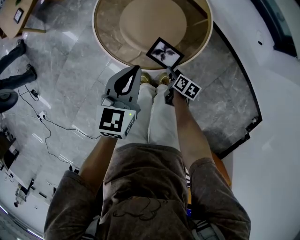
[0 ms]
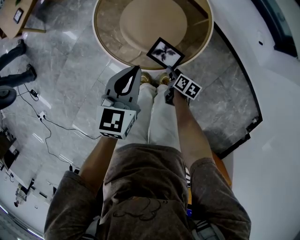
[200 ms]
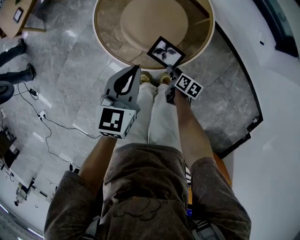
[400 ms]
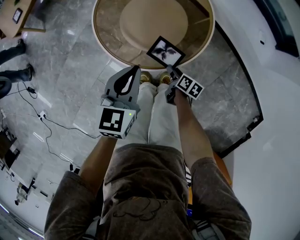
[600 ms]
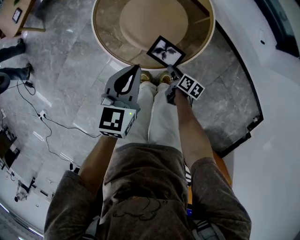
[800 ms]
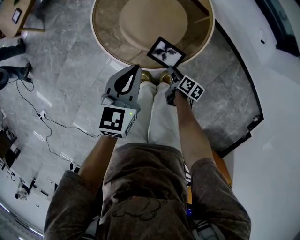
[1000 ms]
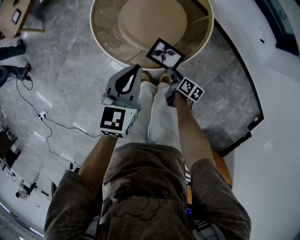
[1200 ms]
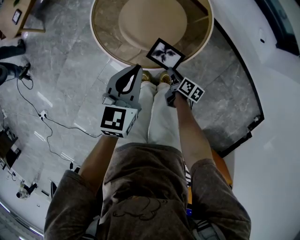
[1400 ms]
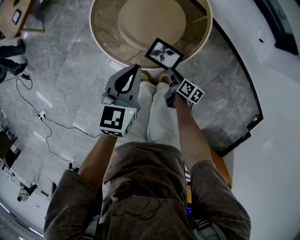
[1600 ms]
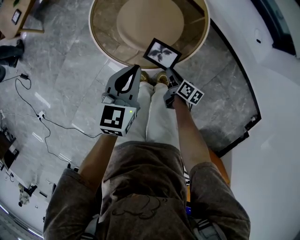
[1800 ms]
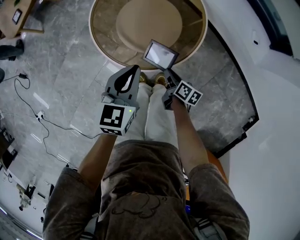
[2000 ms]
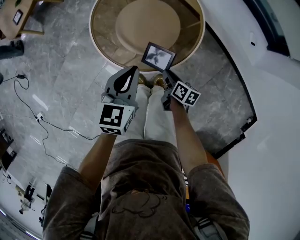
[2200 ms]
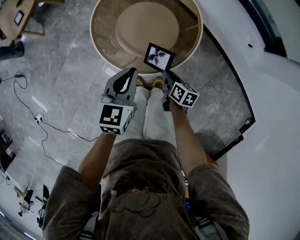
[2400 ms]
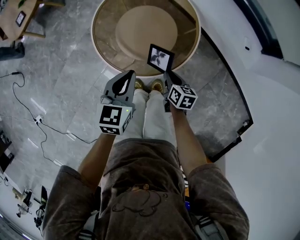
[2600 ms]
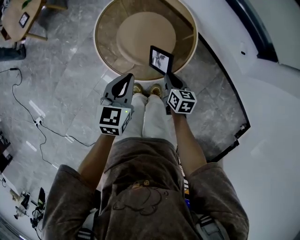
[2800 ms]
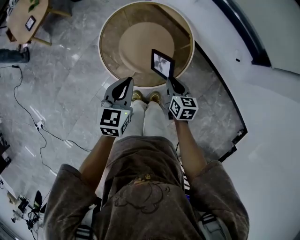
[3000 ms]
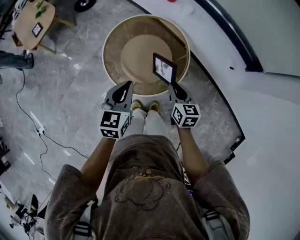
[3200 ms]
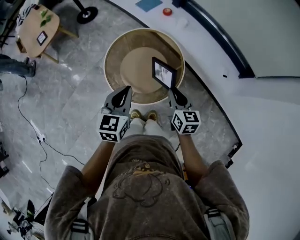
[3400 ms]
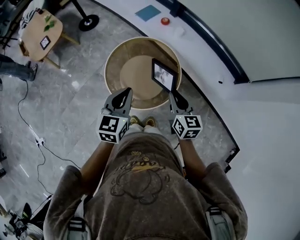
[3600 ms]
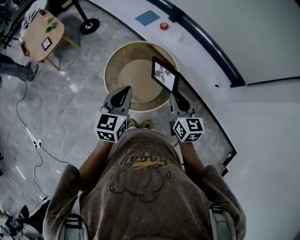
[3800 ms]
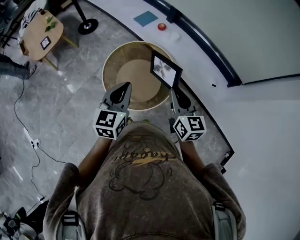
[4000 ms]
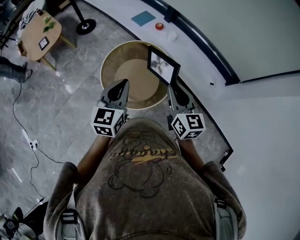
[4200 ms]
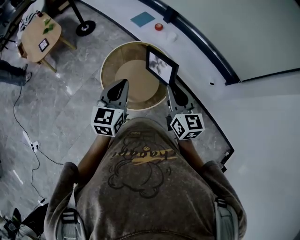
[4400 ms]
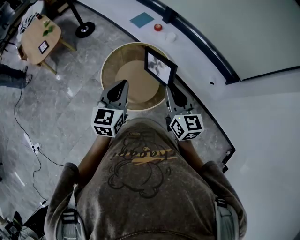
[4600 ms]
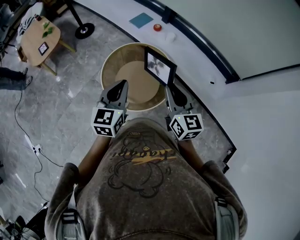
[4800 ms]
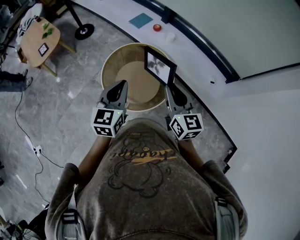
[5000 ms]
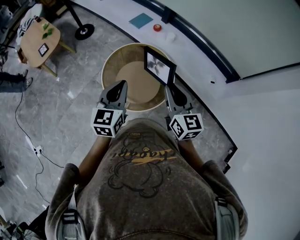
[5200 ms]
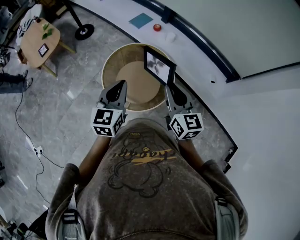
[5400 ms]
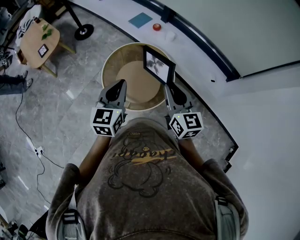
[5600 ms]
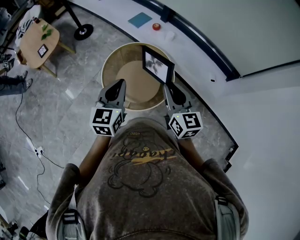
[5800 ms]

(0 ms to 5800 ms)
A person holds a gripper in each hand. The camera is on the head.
0 ms - 1400 ms: The right gripper closes up.
1400 ms - 2800 ms: The right gripper moves upward, about 15 cm, and swivels some 40 degrees.
2800 ms - 4400 ms: The left gripper is displaced upward by some 25 cm. Meanwhile the right gripper heads upward, covering about 40 cm, and tips its fingers upward by roughly 30 degrees.
4400 ms - 5800 ms: The grippers make only small movements.

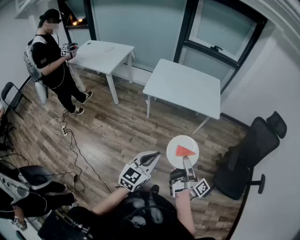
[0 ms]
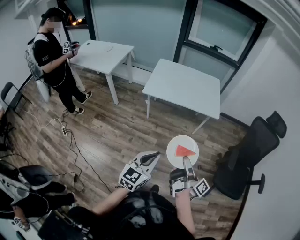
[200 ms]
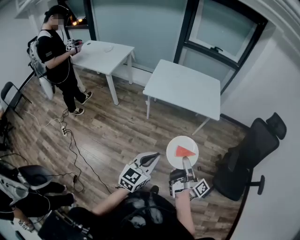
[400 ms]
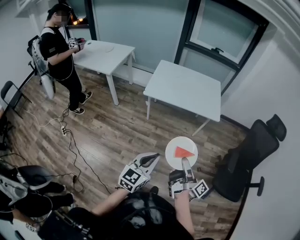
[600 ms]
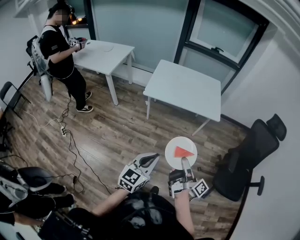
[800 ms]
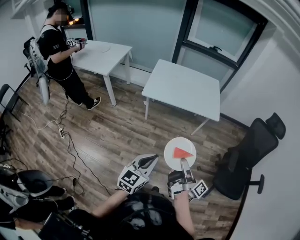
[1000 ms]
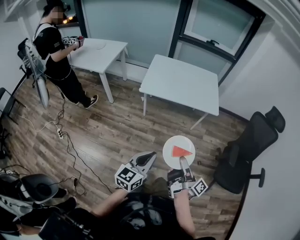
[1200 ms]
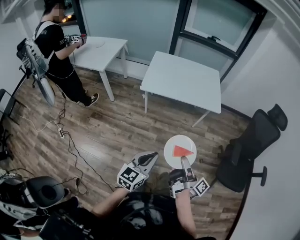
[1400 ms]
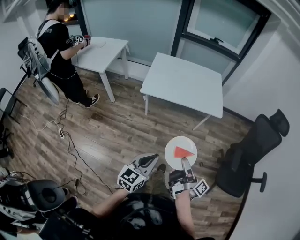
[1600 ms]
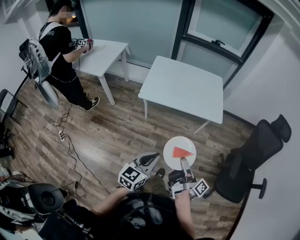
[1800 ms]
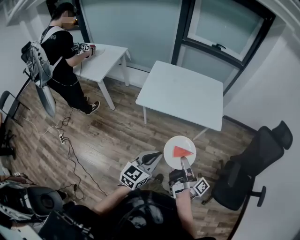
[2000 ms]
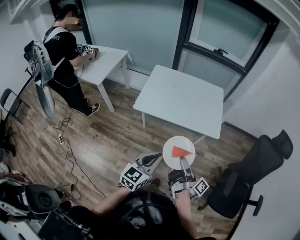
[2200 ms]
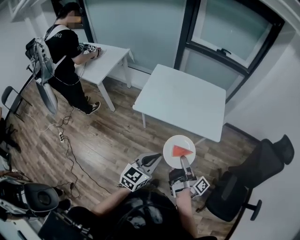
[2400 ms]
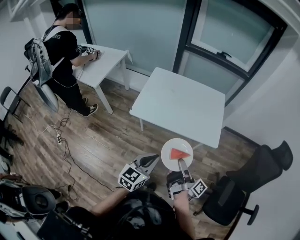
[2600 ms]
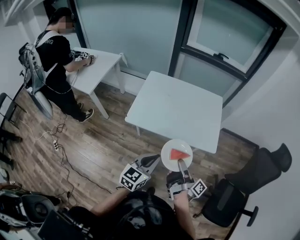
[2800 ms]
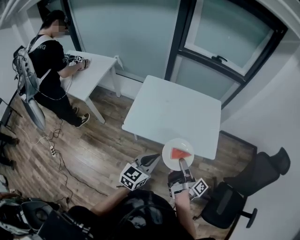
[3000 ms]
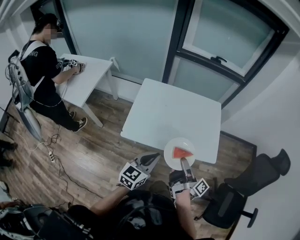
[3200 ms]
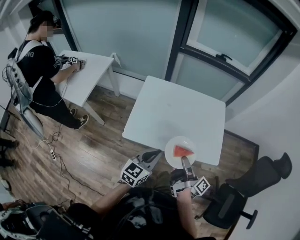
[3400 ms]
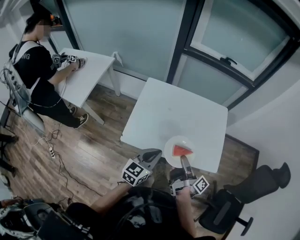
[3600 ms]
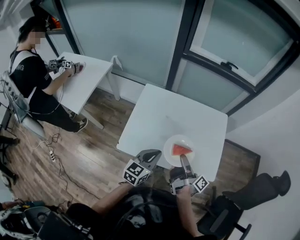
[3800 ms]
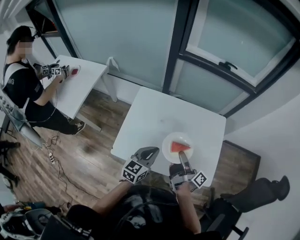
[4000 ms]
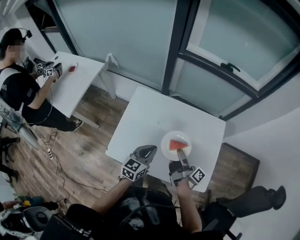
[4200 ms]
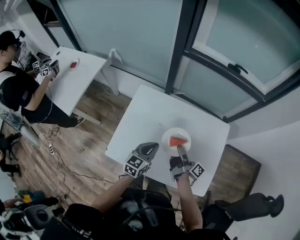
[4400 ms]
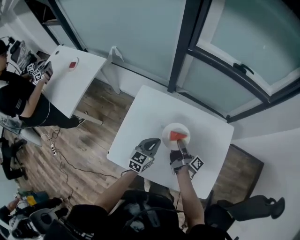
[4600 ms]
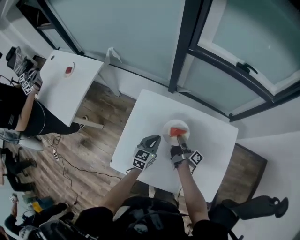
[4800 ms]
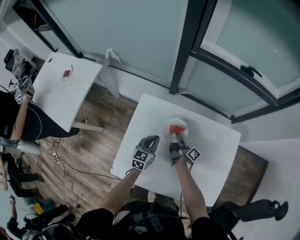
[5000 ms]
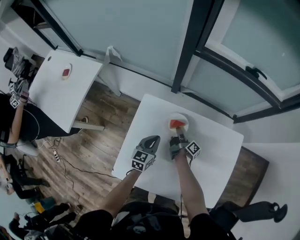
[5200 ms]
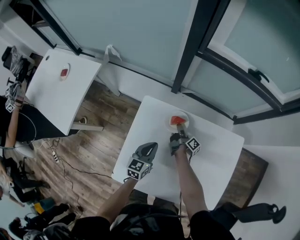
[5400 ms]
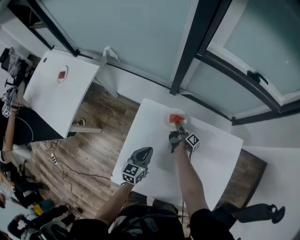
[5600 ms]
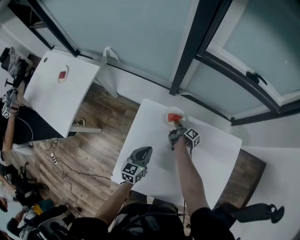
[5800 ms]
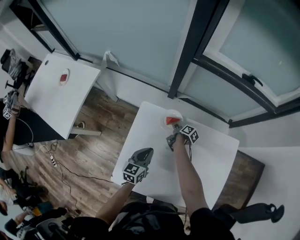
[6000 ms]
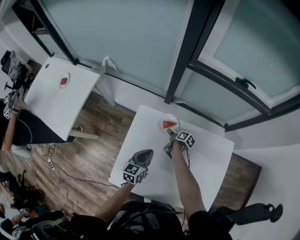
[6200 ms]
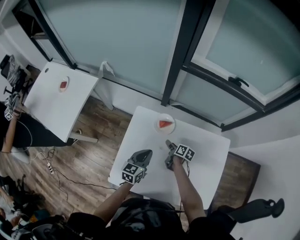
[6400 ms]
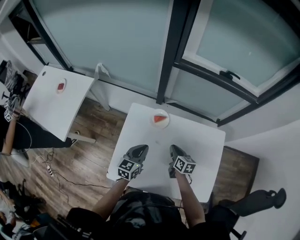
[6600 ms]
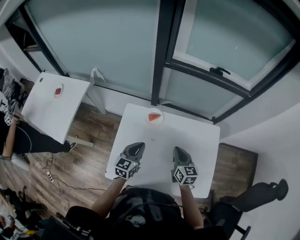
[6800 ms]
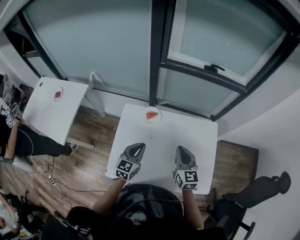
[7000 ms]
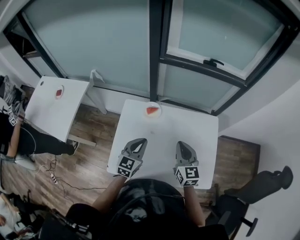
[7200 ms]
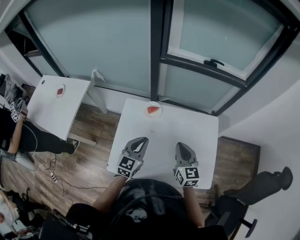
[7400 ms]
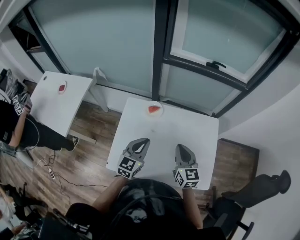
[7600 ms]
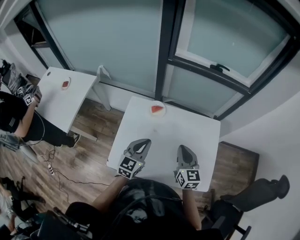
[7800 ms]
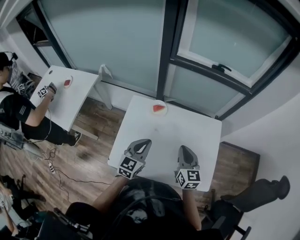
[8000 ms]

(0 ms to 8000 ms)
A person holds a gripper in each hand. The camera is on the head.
0 ms - 1600 ms: The left gripper shifts by about 10 cm.
1600 ms - 3200 ms: The left gripper moves approximately 40 cm.
3200 ms - 4800 ms: The left gripper shifts by roughly 50 cm.
4800 ms - 6400 ms: The left gripper shifts by roughly 5 cm.
6400 ms - 8000 ms: The left gripper heads upward, covering roughly 10 cm, and rotates roughly 20 degrees.

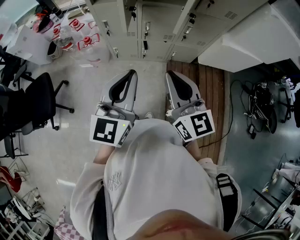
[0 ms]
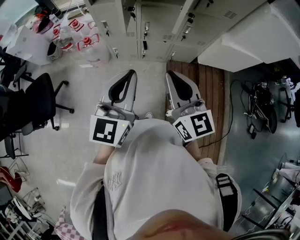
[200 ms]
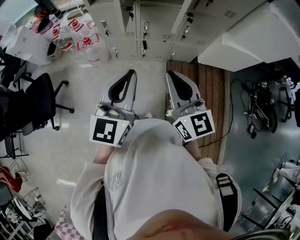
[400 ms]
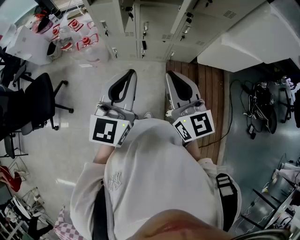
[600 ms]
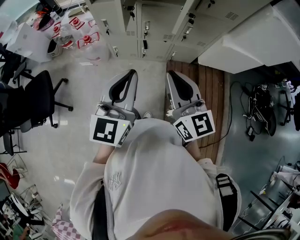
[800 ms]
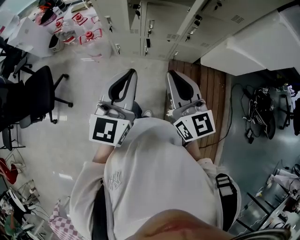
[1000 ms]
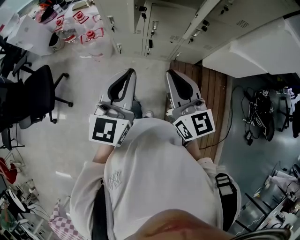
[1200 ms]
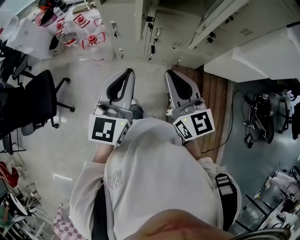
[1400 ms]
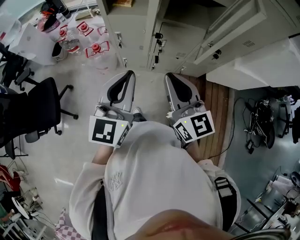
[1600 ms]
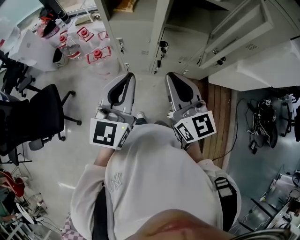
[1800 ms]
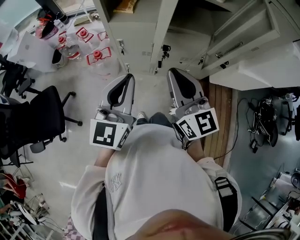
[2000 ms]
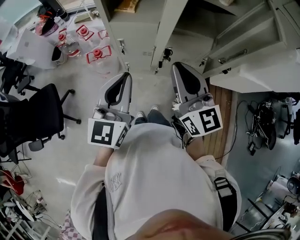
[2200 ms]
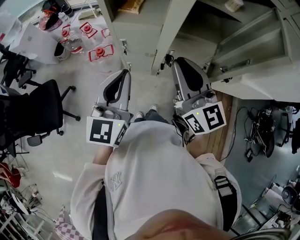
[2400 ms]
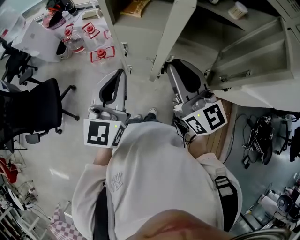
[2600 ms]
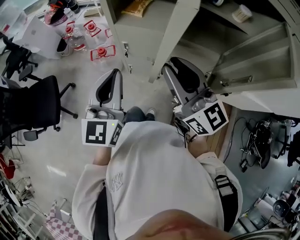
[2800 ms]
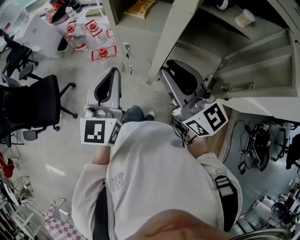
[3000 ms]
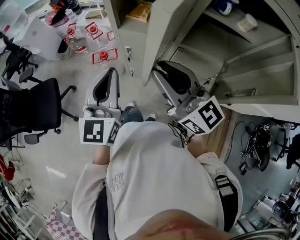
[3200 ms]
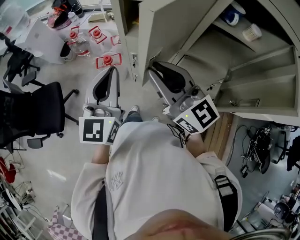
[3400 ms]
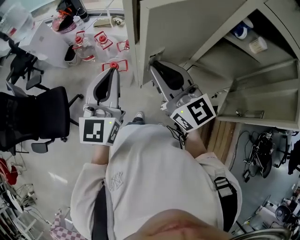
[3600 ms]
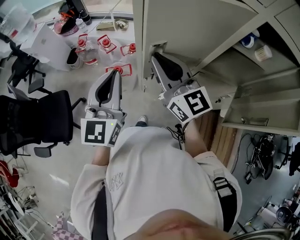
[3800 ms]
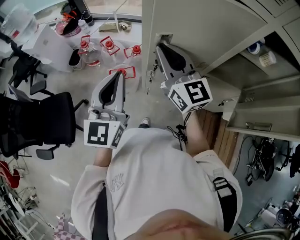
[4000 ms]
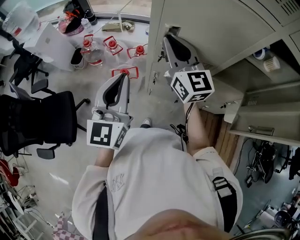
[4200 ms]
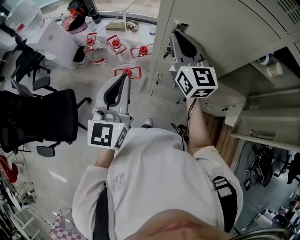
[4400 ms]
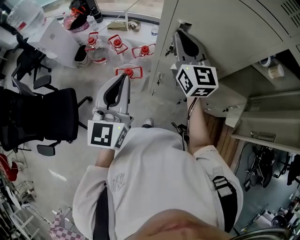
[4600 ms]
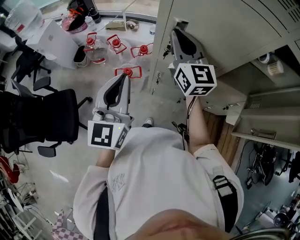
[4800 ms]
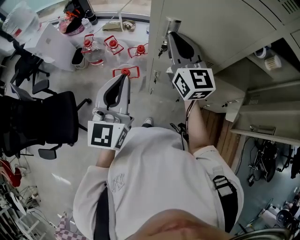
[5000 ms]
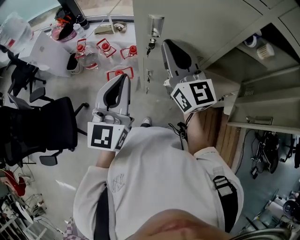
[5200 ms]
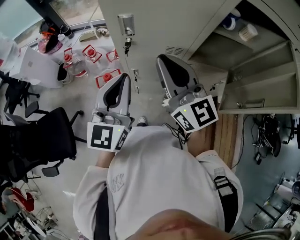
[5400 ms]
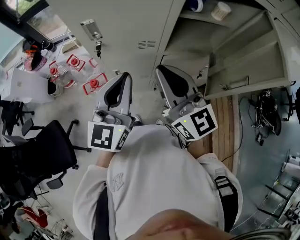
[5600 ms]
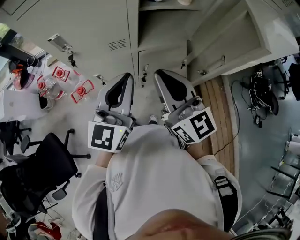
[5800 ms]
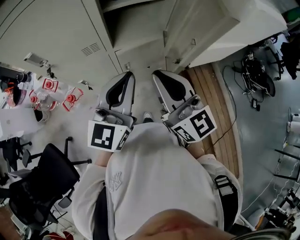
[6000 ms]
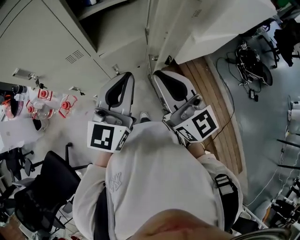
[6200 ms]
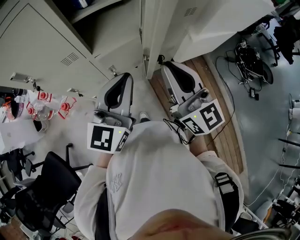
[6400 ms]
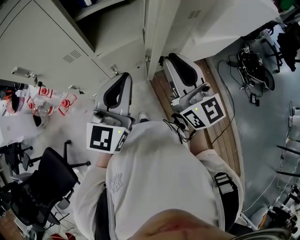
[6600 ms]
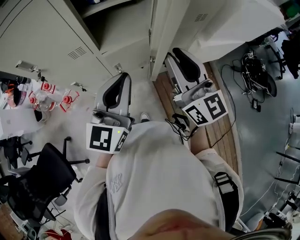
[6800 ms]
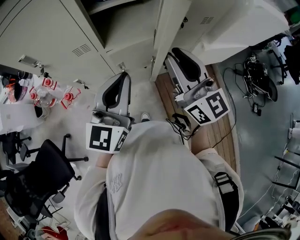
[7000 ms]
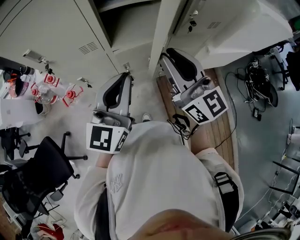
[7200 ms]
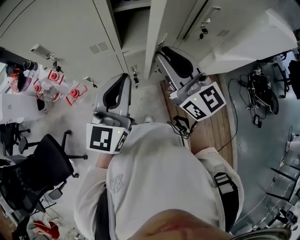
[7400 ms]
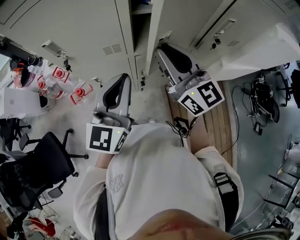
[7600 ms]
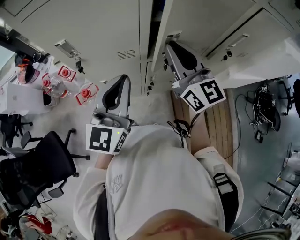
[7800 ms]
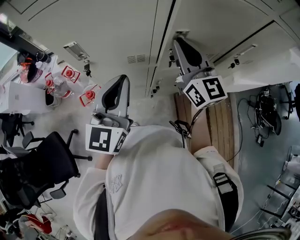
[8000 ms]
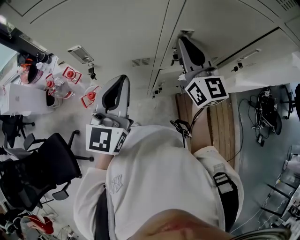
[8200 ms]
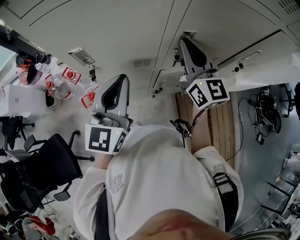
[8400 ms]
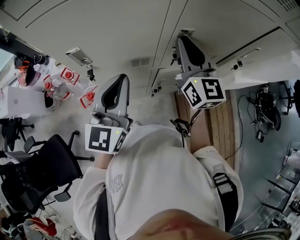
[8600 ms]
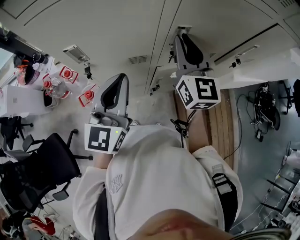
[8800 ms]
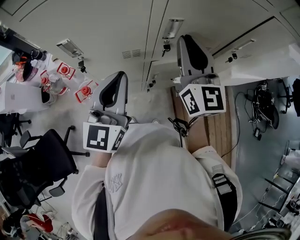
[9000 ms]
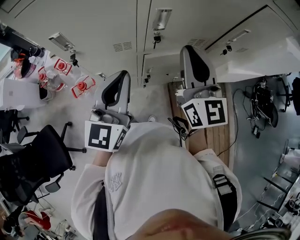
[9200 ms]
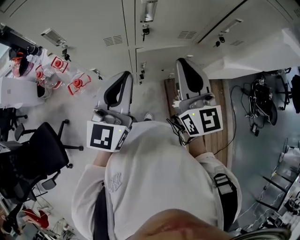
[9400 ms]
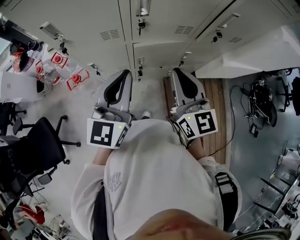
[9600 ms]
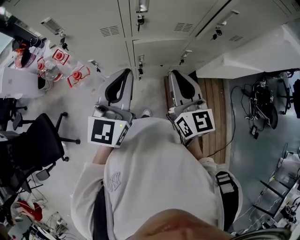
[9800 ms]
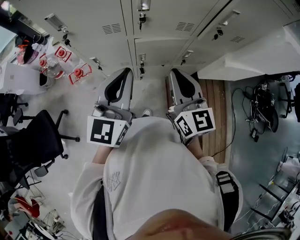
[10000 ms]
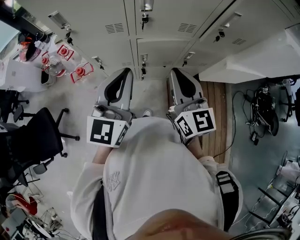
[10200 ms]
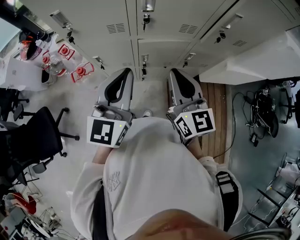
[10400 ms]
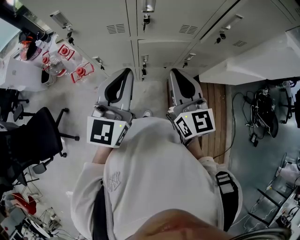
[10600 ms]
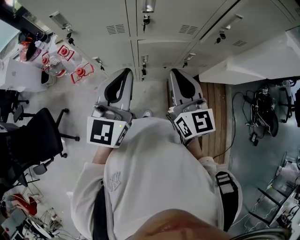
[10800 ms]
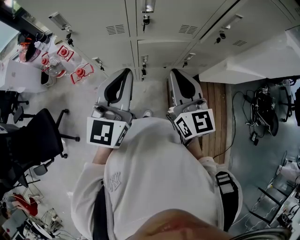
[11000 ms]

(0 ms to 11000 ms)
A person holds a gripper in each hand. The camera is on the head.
0 ms - 1600 ms: Both grippers travel together forward and to the left, some 15 cm.
1600 ms - 3200 ms: The right gripper goes some 15 cm forward, and rotates roughly 30 degrees, while the left gripper moves forward and to the left, some 15 cm.
3200 ms - 4800 ms: The right gripper moves forward, approximately 25 cm, and swivels some 30 degrees. Meanwhile the left gripper shifts approximately 15 cm to the left and forward.
4800 ms - 6200 ms: Both grippers are carried roughly 40 cm. The left gripper turns by approximately 50 degrees; the right gripper swivels about 20 degrees.
6200 ms - 7800 ms: The left gripper goes some 15 cm to the left, while the right gripper shifts some 20 cm forward and to the left.
7800 ms - 9400 ms: The right gripper is displaced backward and to the right by about 10 cm; the left gripper shifts about 5 cm to the right.
9400 ms - 11000 ms: The right gripper is displaced downward by some 5 cm.
